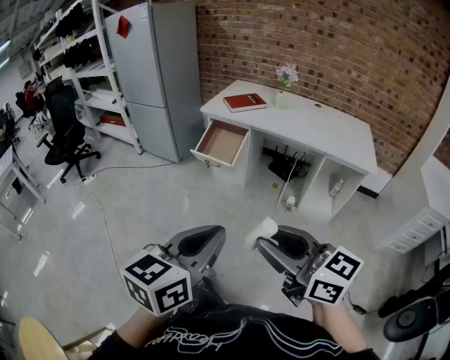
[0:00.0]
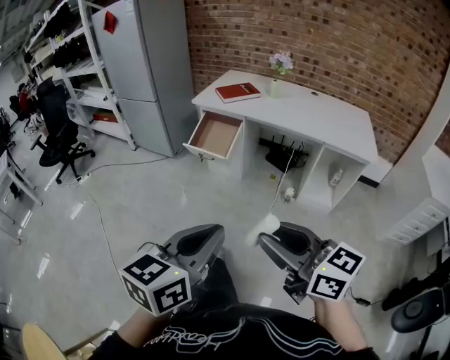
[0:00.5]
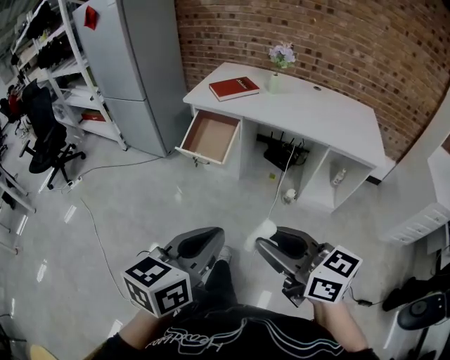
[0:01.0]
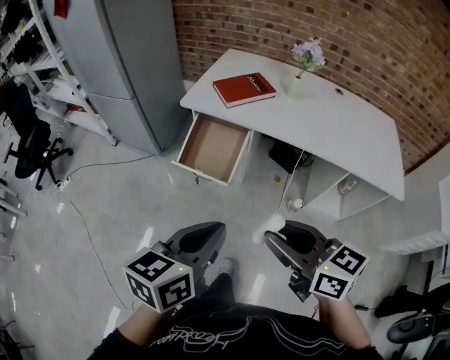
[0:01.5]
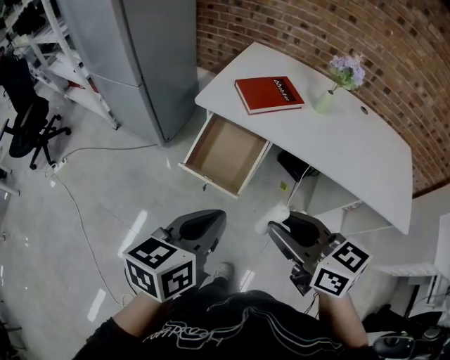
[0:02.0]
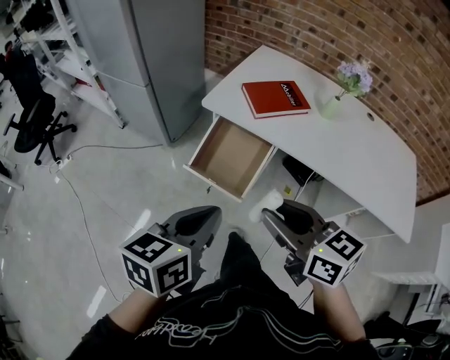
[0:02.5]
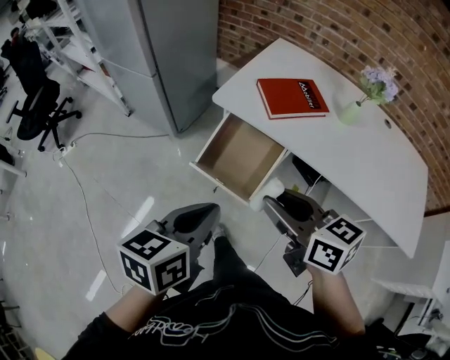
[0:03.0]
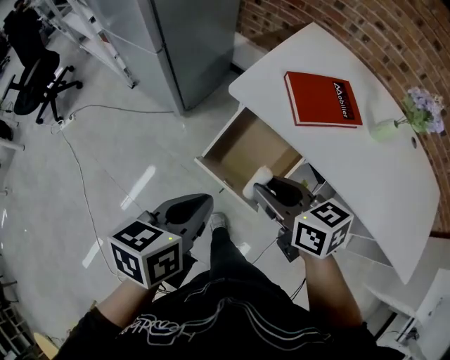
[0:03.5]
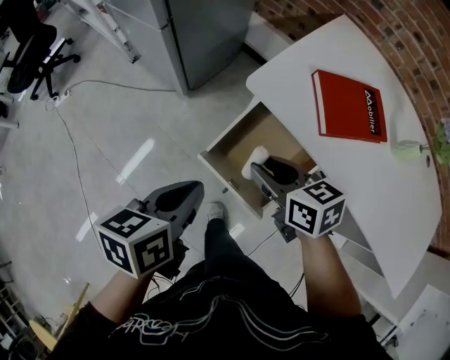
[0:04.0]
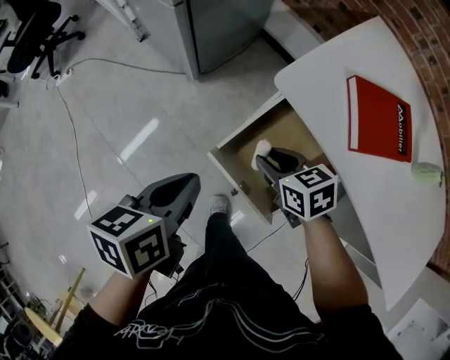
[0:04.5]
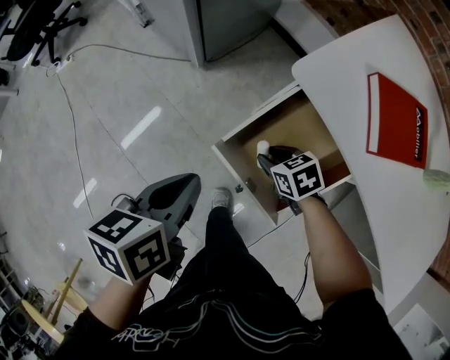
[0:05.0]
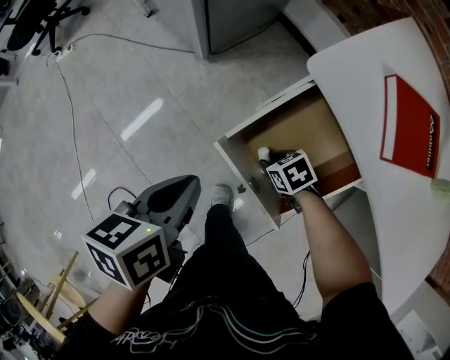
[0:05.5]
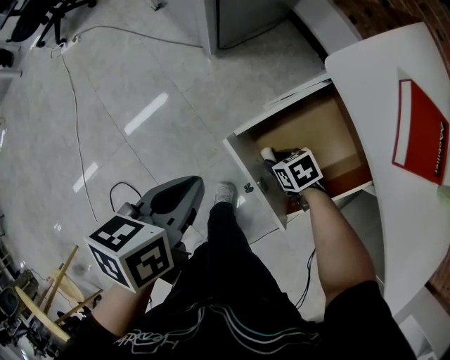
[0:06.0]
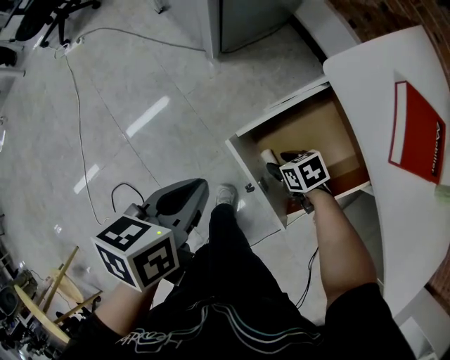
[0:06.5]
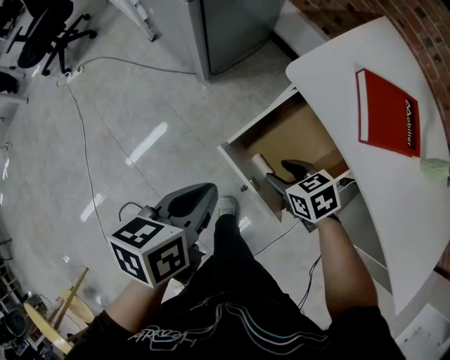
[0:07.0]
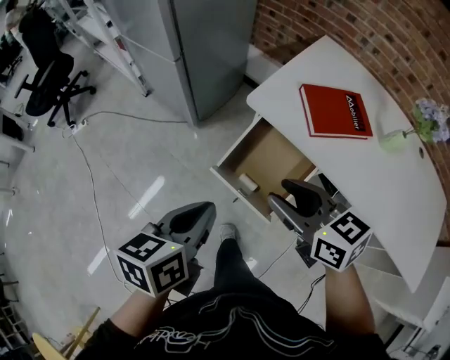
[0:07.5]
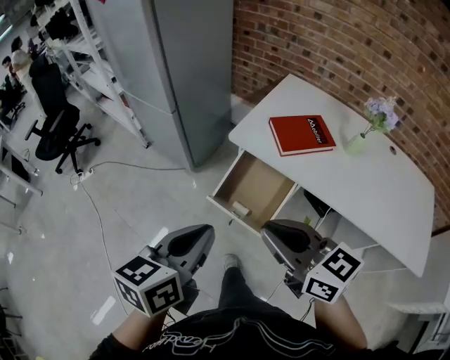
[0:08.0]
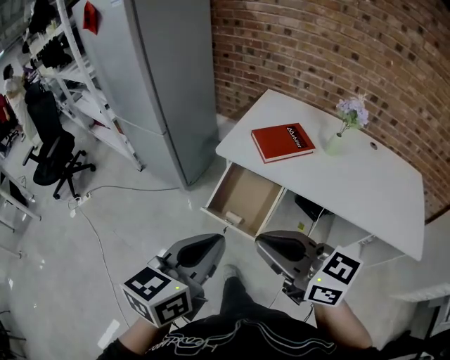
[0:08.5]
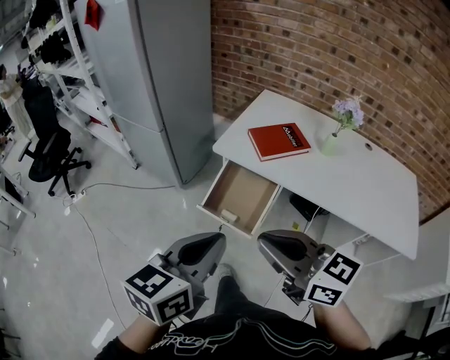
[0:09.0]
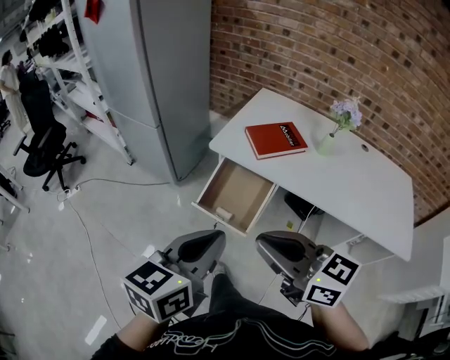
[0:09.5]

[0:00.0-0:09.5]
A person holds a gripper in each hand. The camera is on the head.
0:00.0 to 0:02.0: Both grippers are carried forward, about 60 cm.
0:02.0 to 0:04.0: The right gripper heads forward and downward, covering about 40 cm, and swivels some 20 degrees. Meanwhile the left gripper moves forward, downward and to the left, some 35 cm, and swivels some 30 degrees.
0:04.0 to 0:05.5: The left gripper heads downward, covering some 10 cm. The right gripper goes approximately 30 cm downward, and tilts its fingers approximately 30 degrees downward.
0:05.5 to 0:07.5: The left gripper travels upward by some 20 cm, and swivels some 20 degrees, while the right gripper shifts approximately 40 cm upward, and points its fingers some 40 degrees further upward.
0:07.5 to 0:09.5: Both grippers travel together backward and upward, about 30 cm. The right gripper closes. Meanwhile the left gripper rotates roughly 30 degrees.

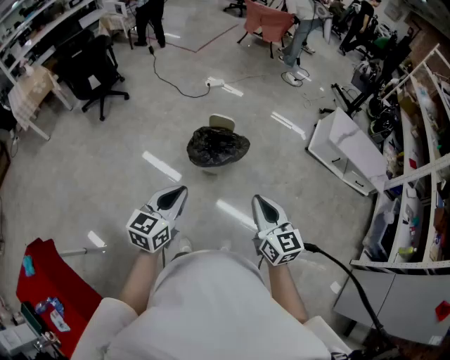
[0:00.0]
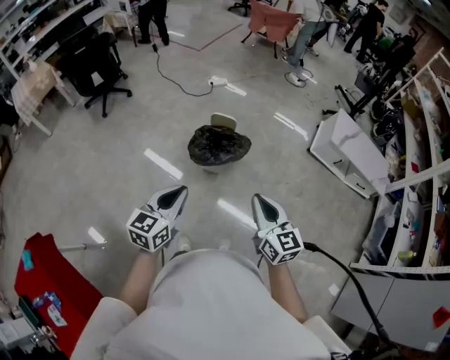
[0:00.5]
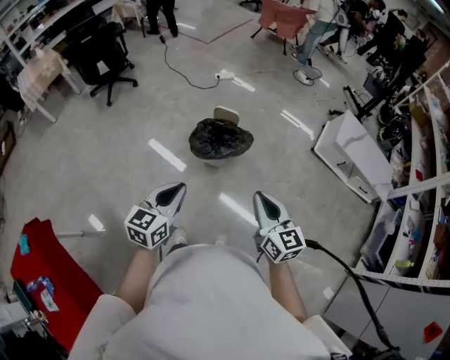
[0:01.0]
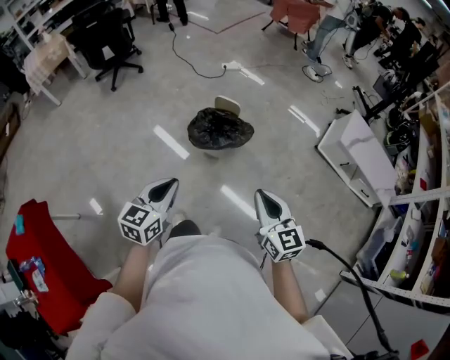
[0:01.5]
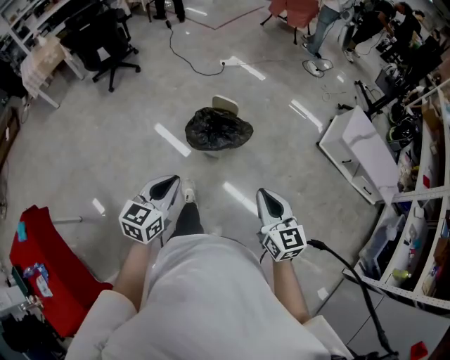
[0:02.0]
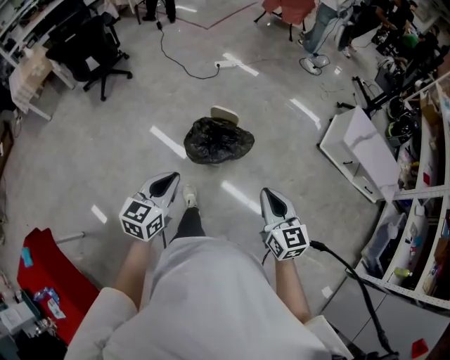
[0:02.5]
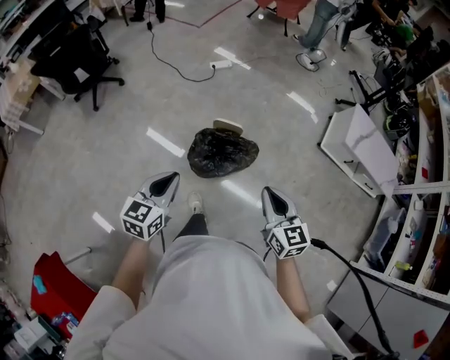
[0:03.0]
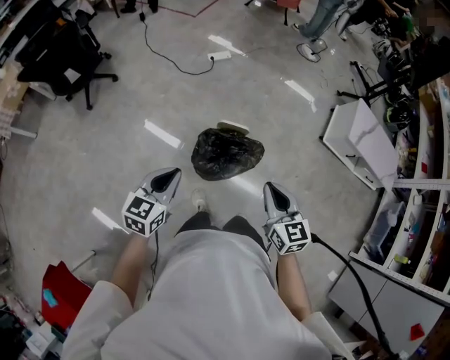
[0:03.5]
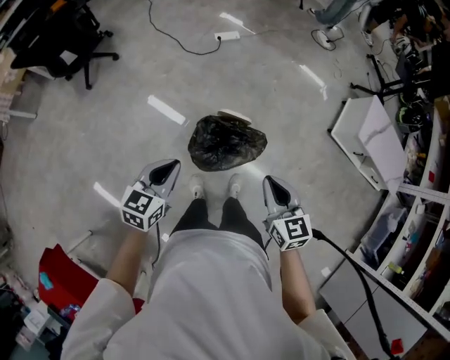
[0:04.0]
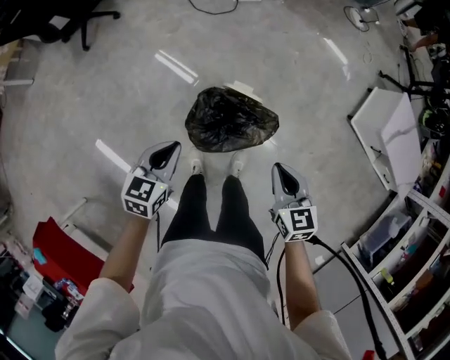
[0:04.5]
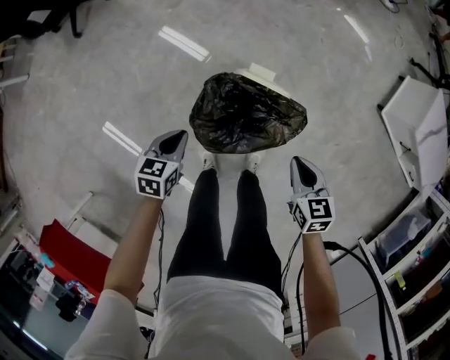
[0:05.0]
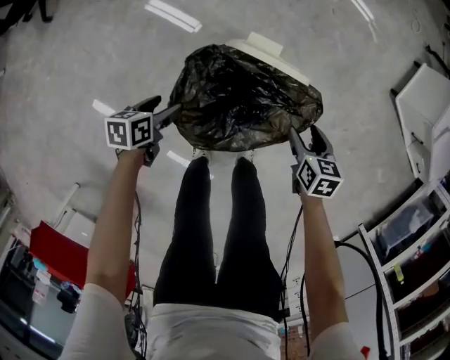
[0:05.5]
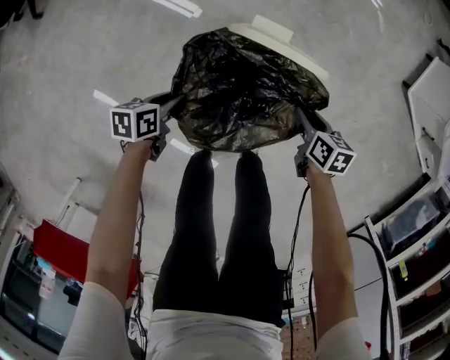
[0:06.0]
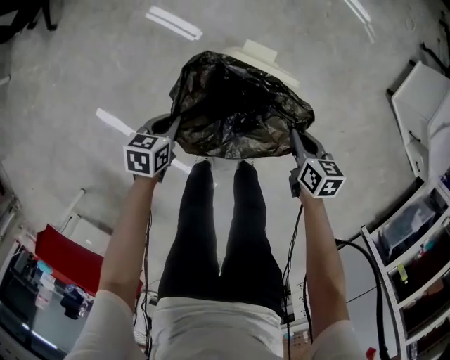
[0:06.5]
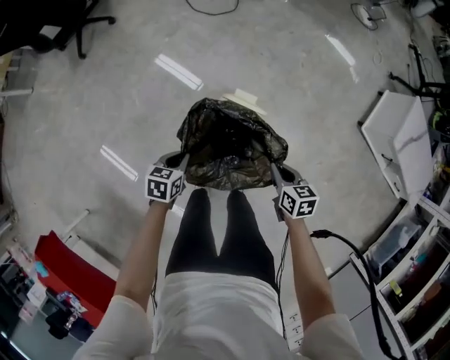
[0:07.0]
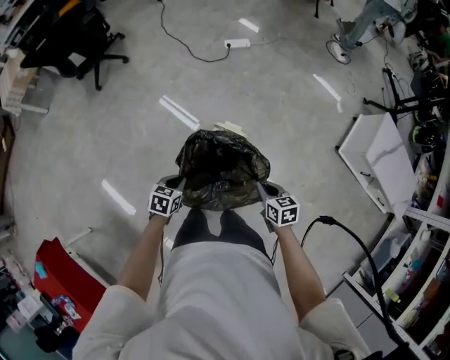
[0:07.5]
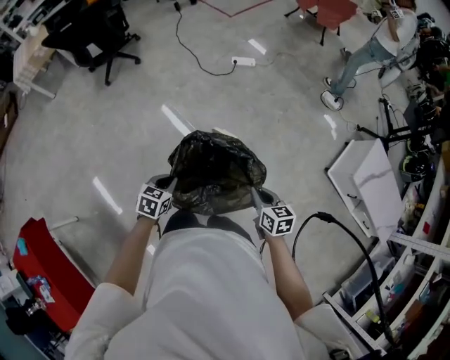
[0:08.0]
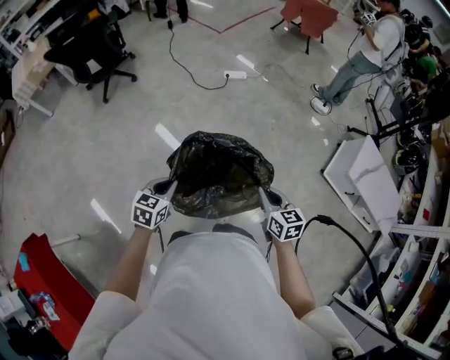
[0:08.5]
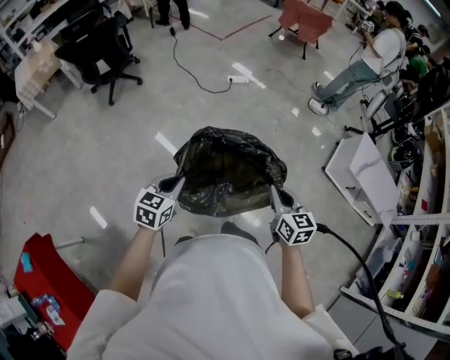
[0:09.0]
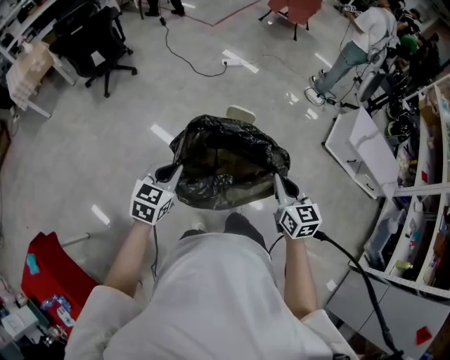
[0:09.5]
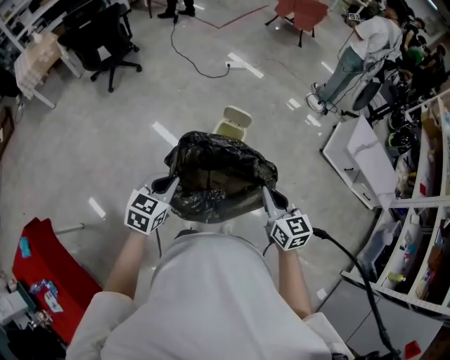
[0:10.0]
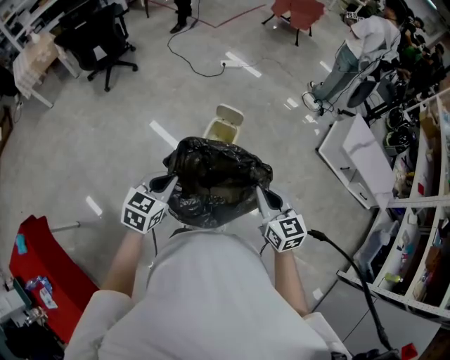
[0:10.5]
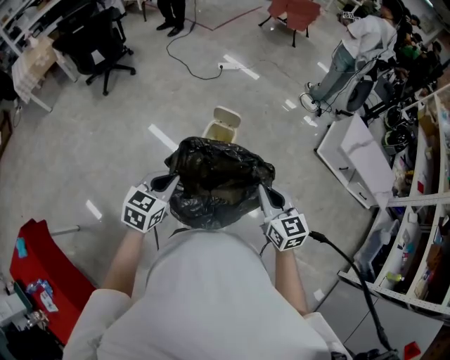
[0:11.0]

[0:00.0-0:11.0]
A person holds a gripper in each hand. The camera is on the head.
0:00.0 to 0:02.0: The grippers both shift to the right by approximately 10 cm.
0:02.0 to 0:03.5: The grippers both shift forward and to the left by about 30 cm.
0:03.5 to 0:05.5: Both grippers travel together downward, some 60 cm. The right gripper angles its fingers downward, by about 40 degrees, and opens its fingers. Meanwhile the left gripper changes its angle by approximately 50 degrees, and opens.
0:05.5 to 0:07.5: Both grippers move upward, some 30 cm. The right gripper turns by approximately 20 degrees, and closes up. Meanwhile the left gripper swivels some 20 degrees, and closes.
0:07.5 to 0:09.0: Both grippers travel together upward and backward, approximately 25 cm. The right gripper swivels roughly 30 degrees, while the left gripper turns by roughly 30 degrees.
0:09.0 to 0:11.0: The left gripper shifts roughly 15 cm backward and to the right. The right gripper heads backward, covering about 15 cm.

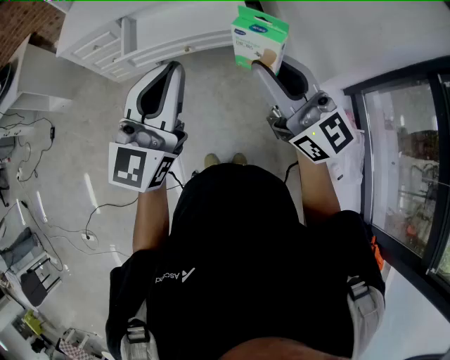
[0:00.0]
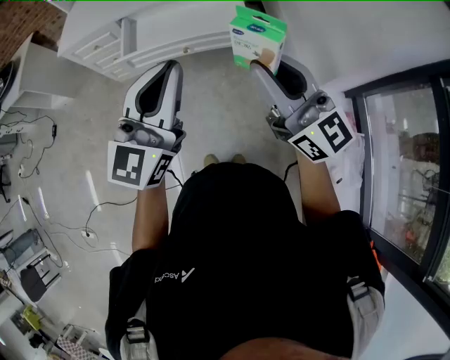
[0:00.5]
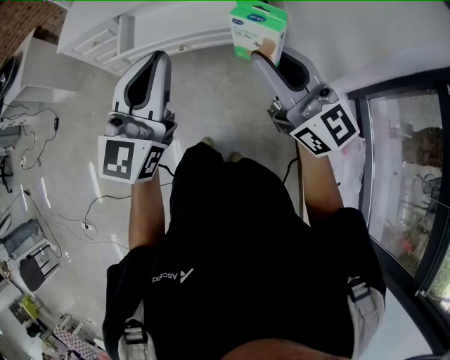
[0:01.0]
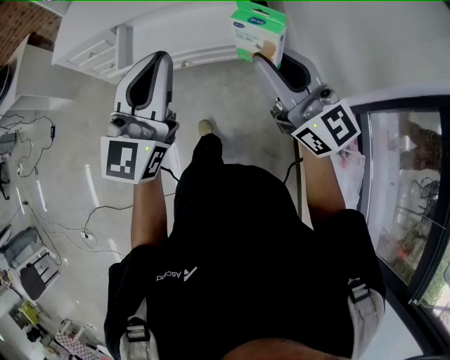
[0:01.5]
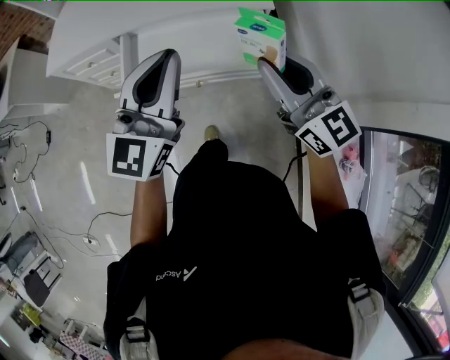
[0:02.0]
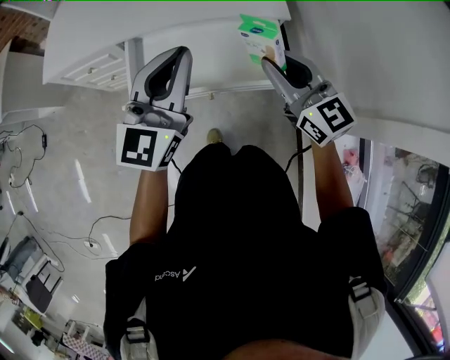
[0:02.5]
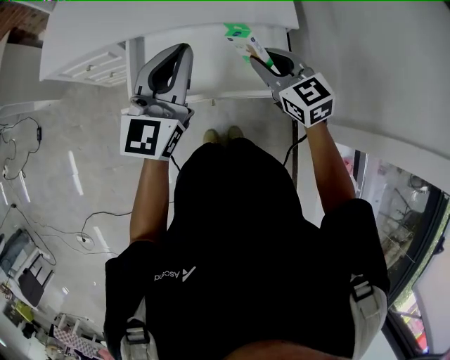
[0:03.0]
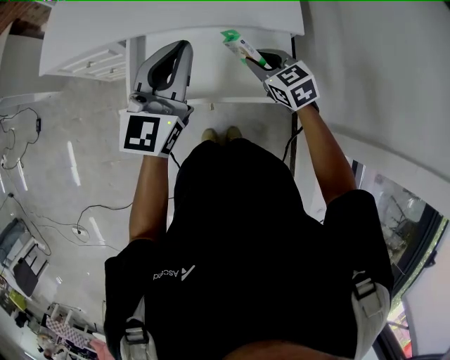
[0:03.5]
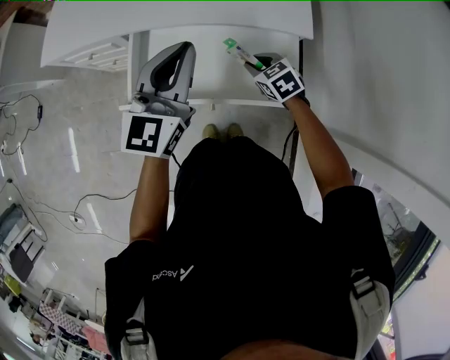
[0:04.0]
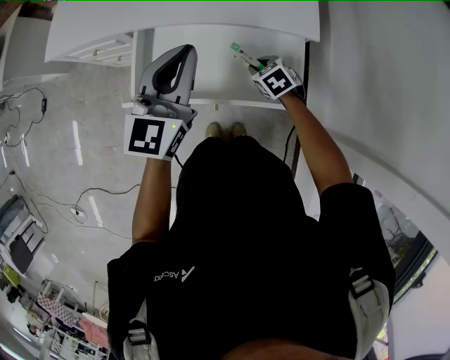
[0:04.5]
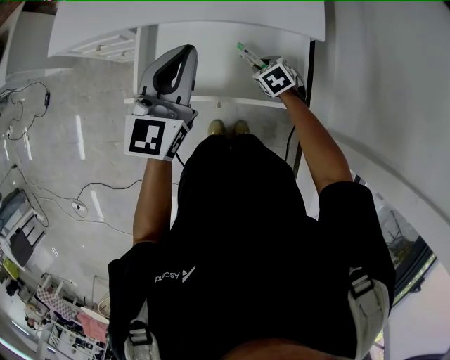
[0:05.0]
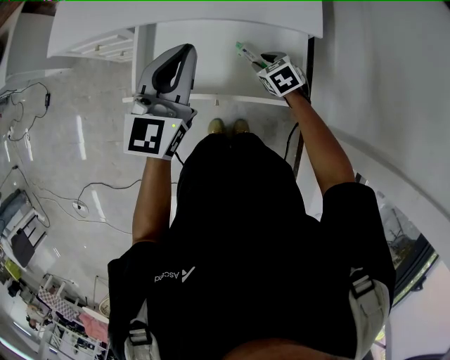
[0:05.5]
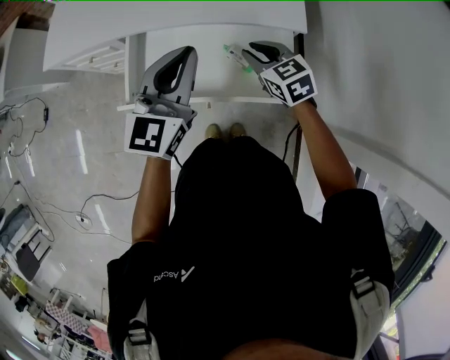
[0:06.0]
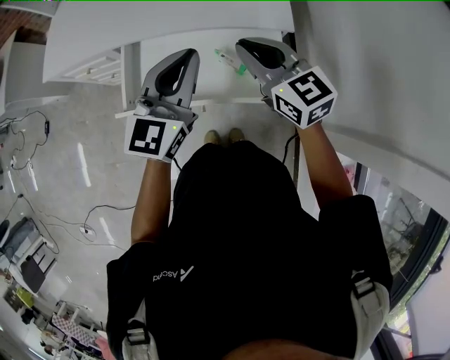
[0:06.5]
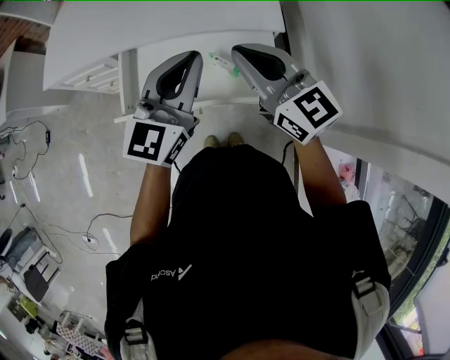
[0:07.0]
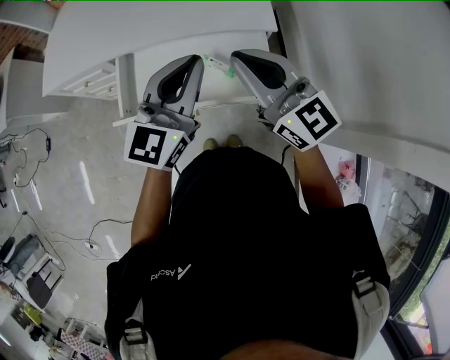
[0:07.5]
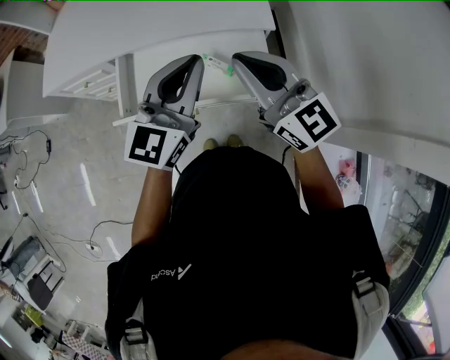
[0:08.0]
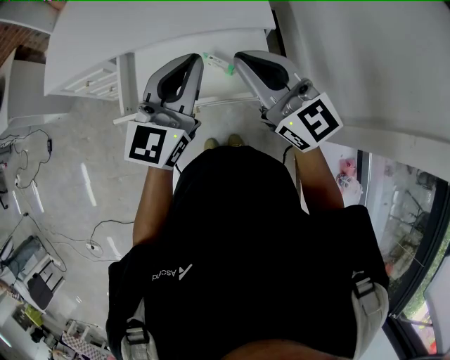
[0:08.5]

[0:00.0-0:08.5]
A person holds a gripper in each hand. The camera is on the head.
0:00.0 to 0:02.0: The two grippers go approximately 30 cm forward.
0:02.0 to 0:04.0: The right gripper shifts about 40 cm downward and forward, and points its fingers about 60 degrees further downward; the left gripper moves forward and downward, approximately 20 cm.
0:04.0 to 0:06.5: The right gripper is displaced upward by some 25 cm, and angles its fingers upward, by about 40 degrees, while the left gripper travels to the right by some 5 cm.
0:06.5 to 0:08.5: The left gripper goes approximately 5 cm backward. Meanwhile the right gripper is displaced backward and upward by about 15 cm.
